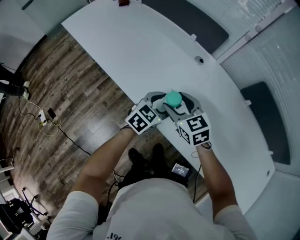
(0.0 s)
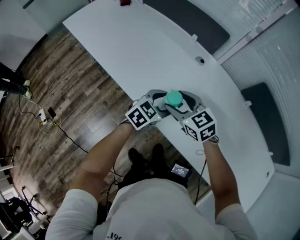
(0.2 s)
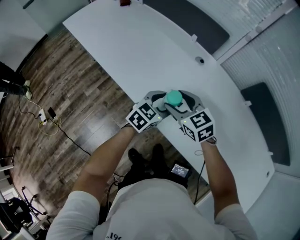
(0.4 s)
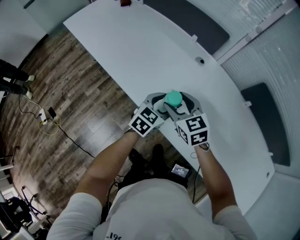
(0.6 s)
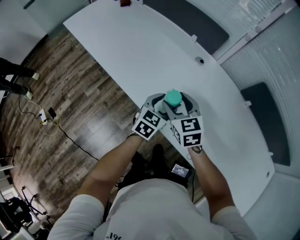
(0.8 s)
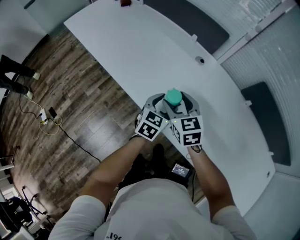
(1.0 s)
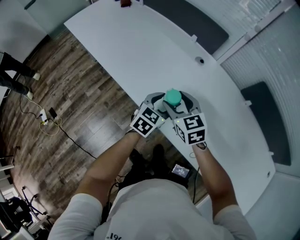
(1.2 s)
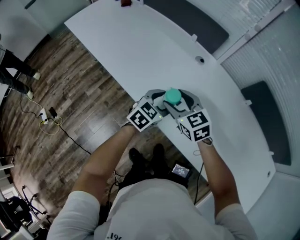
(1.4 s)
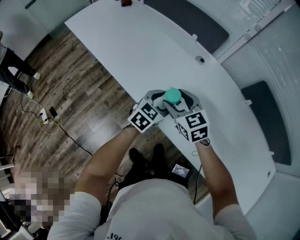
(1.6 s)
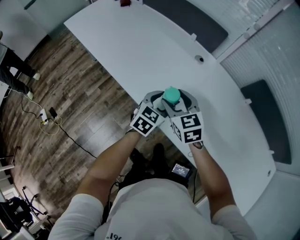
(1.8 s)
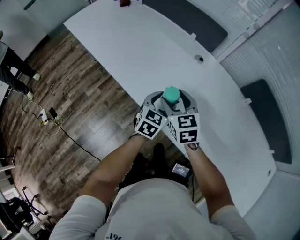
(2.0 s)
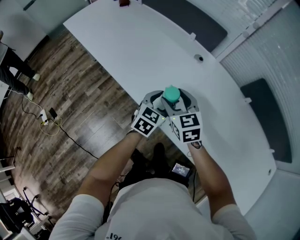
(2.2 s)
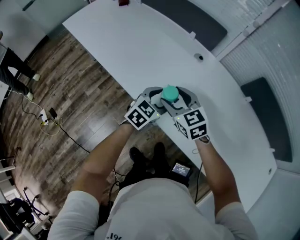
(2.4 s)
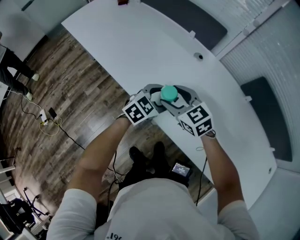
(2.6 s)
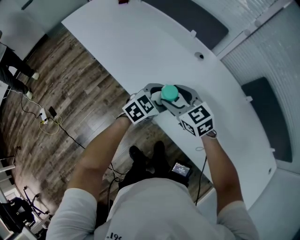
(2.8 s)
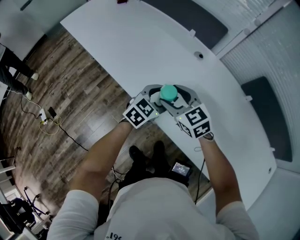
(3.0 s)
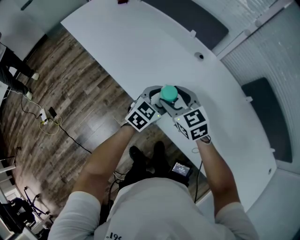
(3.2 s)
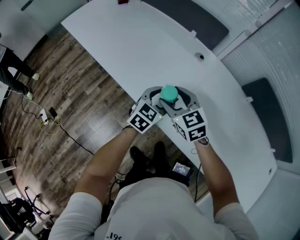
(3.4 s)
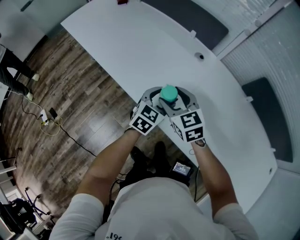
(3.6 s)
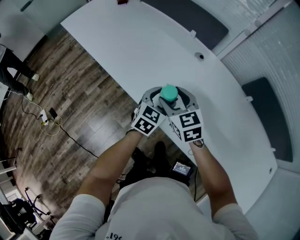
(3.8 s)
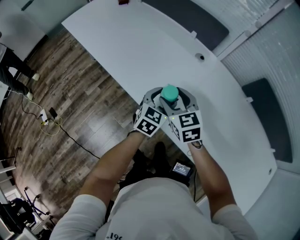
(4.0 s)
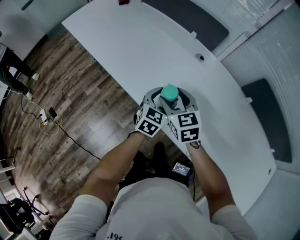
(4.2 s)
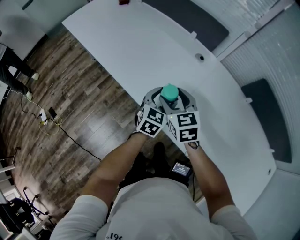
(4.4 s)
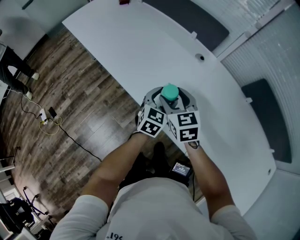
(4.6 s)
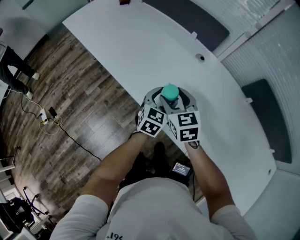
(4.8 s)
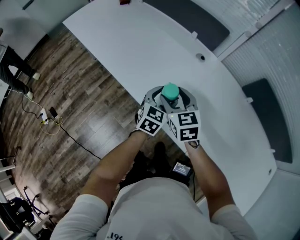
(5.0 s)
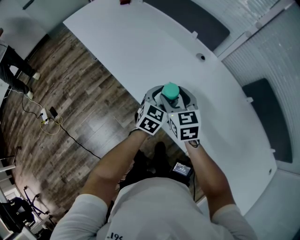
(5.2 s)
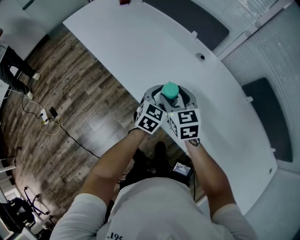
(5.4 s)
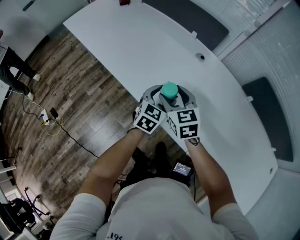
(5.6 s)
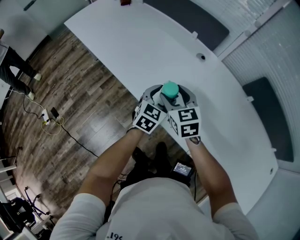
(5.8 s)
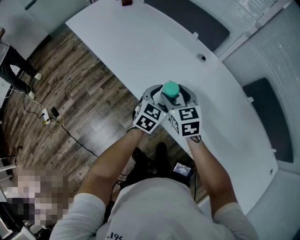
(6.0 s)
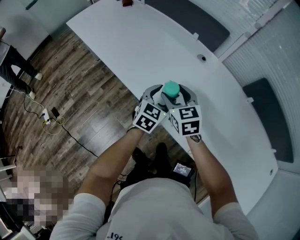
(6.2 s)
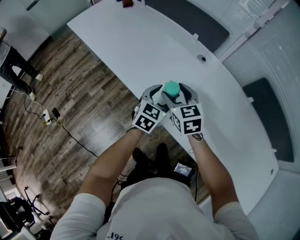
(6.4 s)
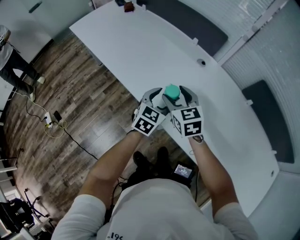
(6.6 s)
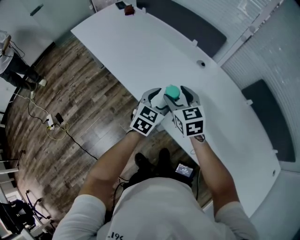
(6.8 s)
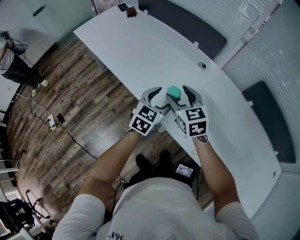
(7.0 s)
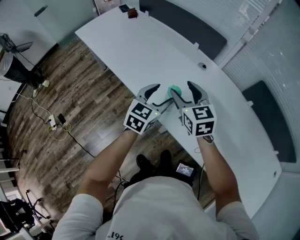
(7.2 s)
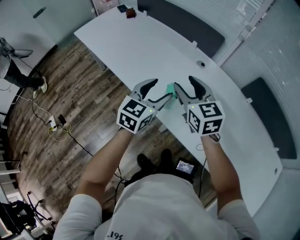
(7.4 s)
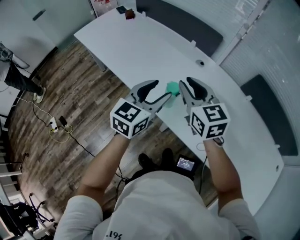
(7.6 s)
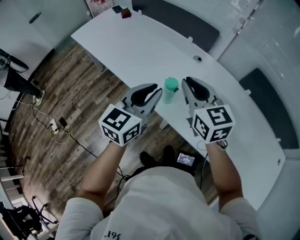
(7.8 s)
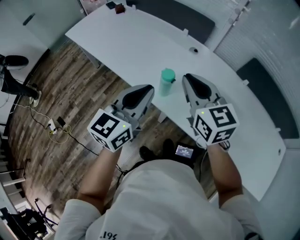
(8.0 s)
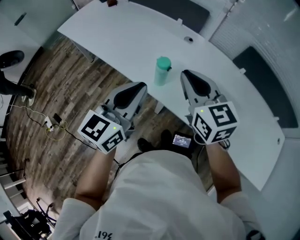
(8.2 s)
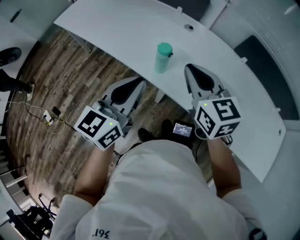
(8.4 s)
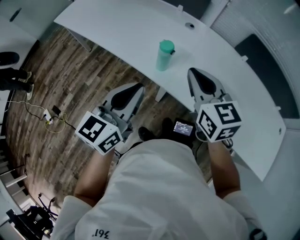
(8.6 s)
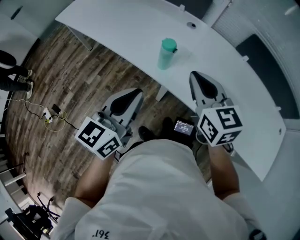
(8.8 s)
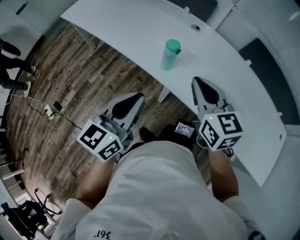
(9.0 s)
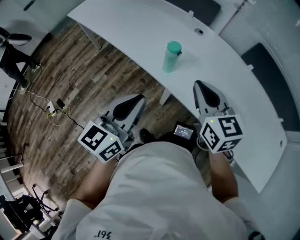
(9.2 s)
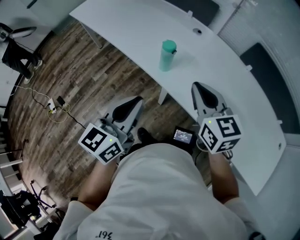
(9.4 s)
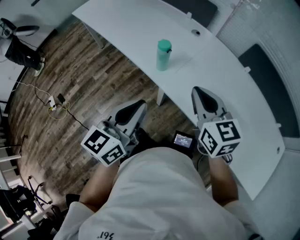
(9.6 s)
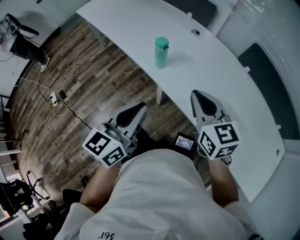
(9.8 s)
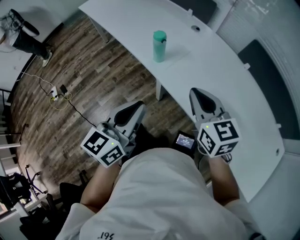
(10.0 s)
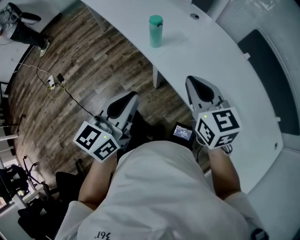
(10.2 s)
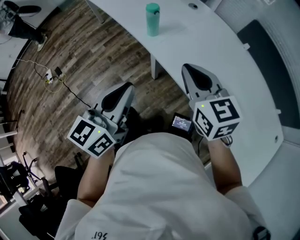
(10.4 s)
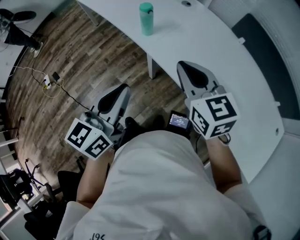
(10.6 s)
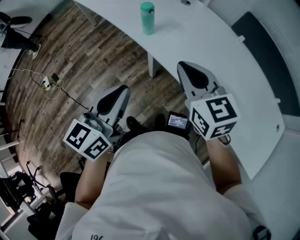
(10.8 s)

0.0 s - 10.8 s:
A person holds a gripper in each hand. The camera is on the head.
0.0 s - 3.0 s: There are only small adjustments of the grippers.
3.0 s - 4.6 s: The left gripper changes its angle by roughly 20 degrees.
4.6 s - 6.2 s: The grippers make only small movements.
6.2 s - 7.8 s: The left gripper heads upward and backward, covering some 20 cm, changes its angle by roughly 20 degrees, and closes, while the right gripper is displaced upward by approximately 15 cm, and closes.
7.8 s - 9.2 s: Both grippers move backward, approximately 15 cm.
9.2 s - 10.8 s: The two grippers go about 15 cm backward and to the right.

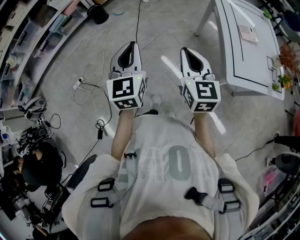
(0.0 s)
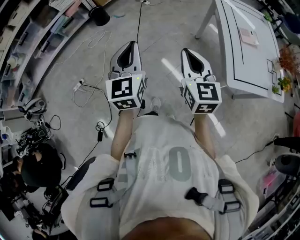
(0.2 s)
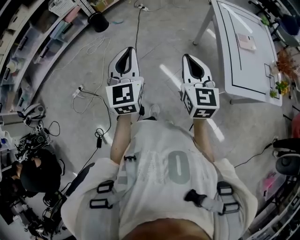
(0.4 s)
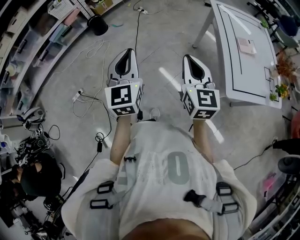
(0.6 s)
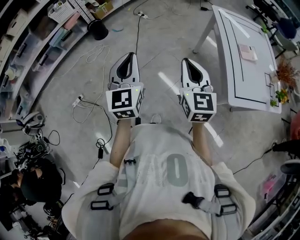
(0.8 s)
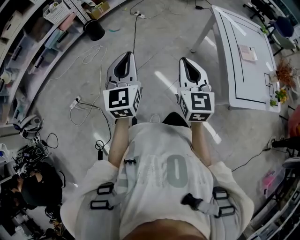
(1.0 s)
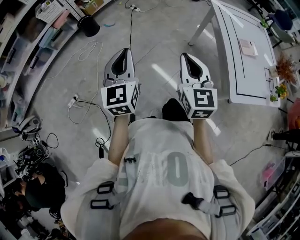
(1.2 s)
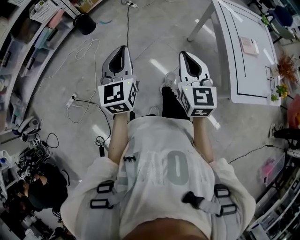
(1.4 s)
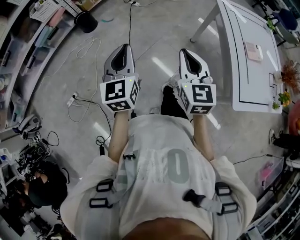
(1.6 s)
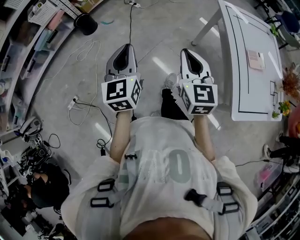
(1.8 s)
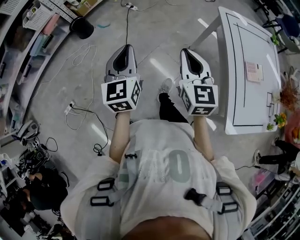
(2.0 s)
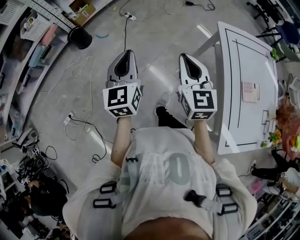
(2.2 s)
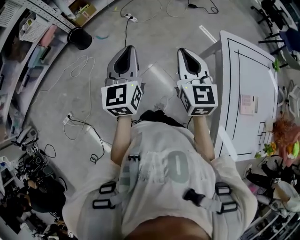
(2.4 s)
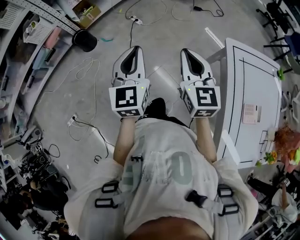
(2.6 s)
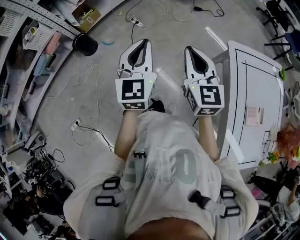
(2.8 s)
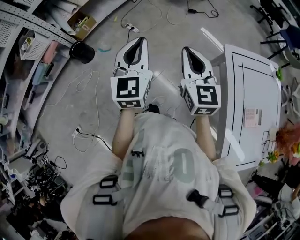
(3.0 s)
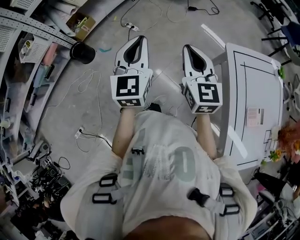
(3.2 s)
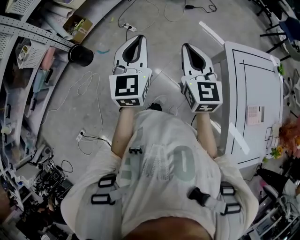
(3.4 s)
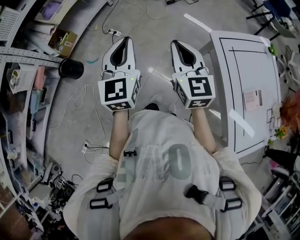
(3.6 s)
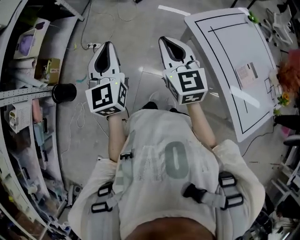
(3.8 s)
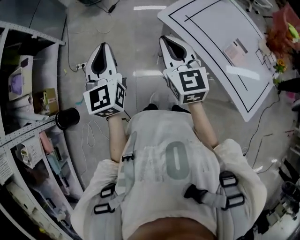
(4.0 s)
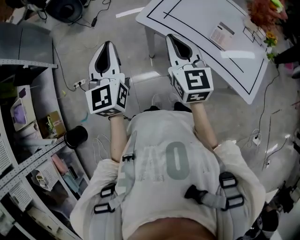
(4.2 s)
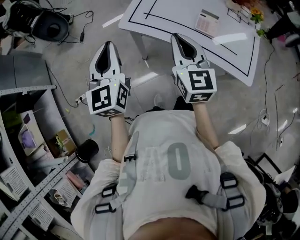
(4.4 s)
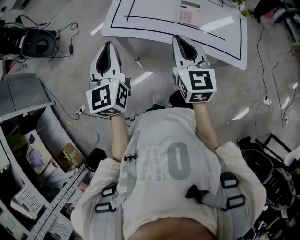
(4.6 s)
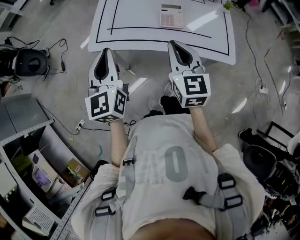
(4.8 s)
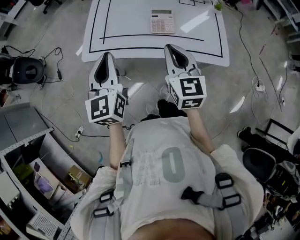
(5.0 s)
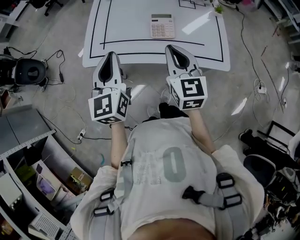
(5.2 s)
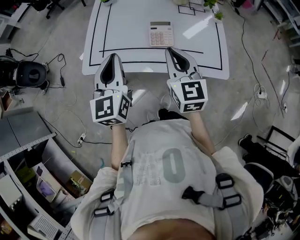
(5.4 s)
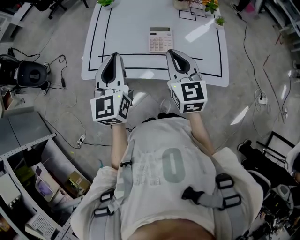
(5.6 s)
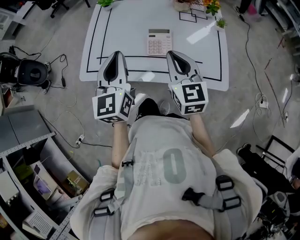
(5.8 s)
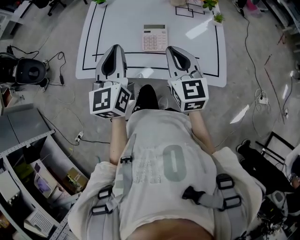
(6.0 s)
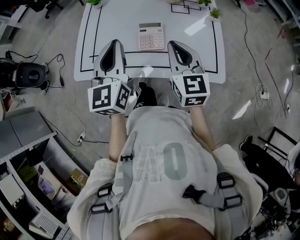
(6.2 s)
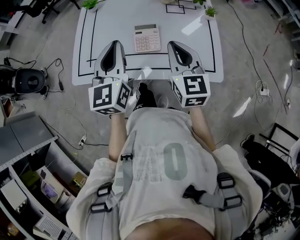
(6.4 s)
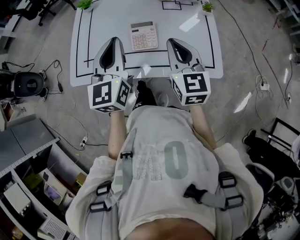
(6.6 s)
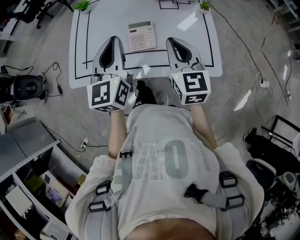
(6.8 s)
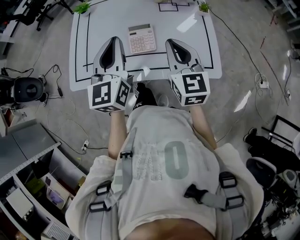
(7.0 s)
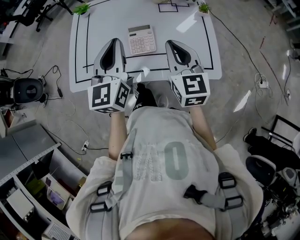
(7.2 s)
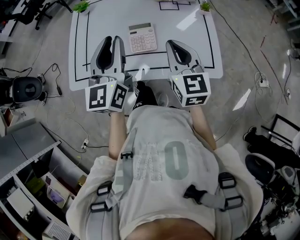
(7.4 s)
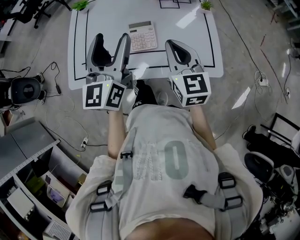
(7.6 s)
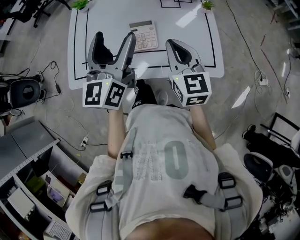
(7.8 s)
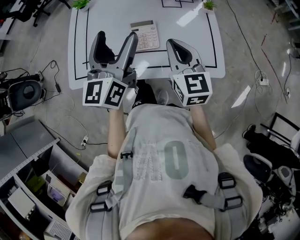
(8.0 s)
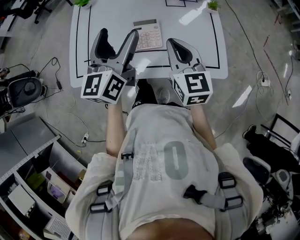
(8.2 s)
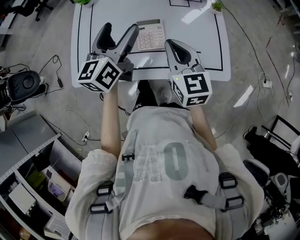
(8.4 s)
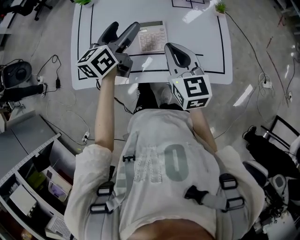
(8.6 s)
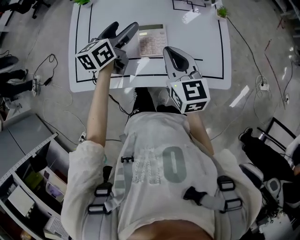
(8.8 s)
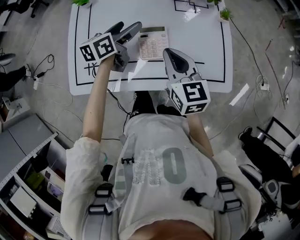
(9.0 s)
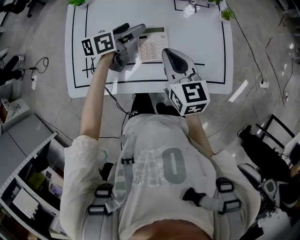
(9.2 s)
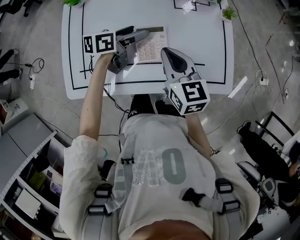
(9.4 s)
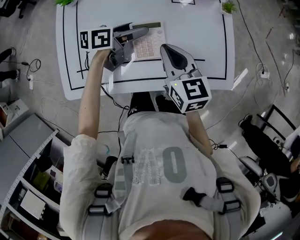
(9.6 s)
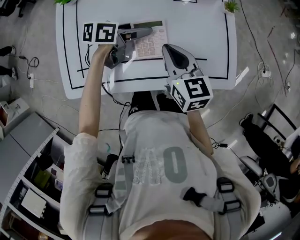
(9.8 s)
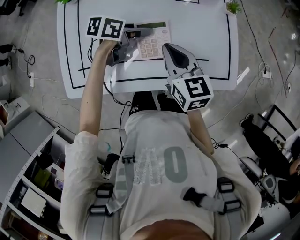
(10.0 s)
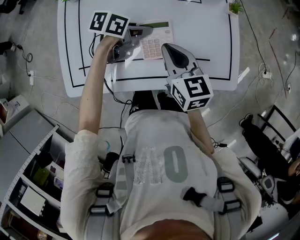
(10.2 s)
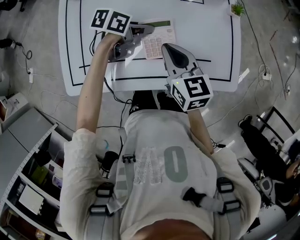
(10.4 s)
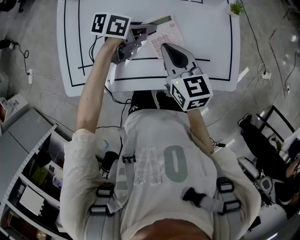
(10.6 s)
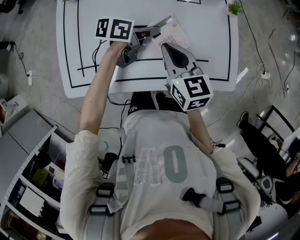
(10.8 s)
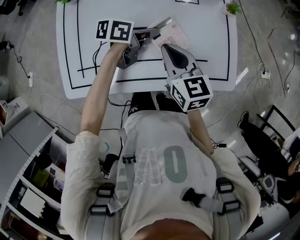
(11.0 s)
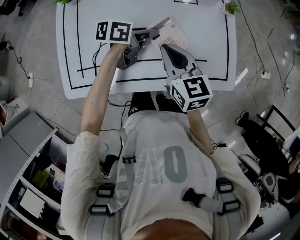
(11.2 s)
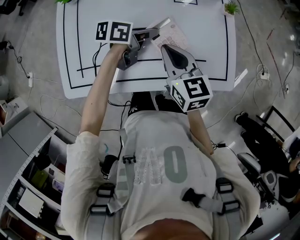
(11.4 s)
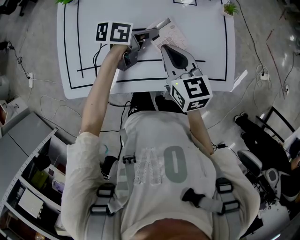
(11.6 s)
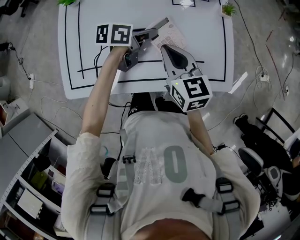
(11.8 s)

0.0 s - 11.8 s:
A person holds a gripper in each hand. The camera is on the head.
0.0 s - 1.4 s: The left gripper moves forward and to the left, some 15 cm, while the right gripper goes about 15 cm forward.
1.4 s - 3.0 s: The two grippers travel together, forward, roughly 50 cm.
3.0 s - 4.4 s: The left gripper shifts by about 30 cm, and swivels about 50 degrees. Meanwhile the right gripper ends up roughly 25 cm from where it was, and rotates approximately 60 degrees.
4.4 s - 6.0 s: Both grippers travel together to the right and forward, roughly 25 cm. The left gripper changes its angle by approximately 30 degrees.
6.0 s - 7.4 s: The left gripper changes place by approximately 5 cm. Meanwhile the right gripper changes place by roughly 5 cm.
7.4 s - 8.8 s: The left gripper travels forward and downward by approximately 20 cm, rotates about 40 degrees, and opens up, while the right gripper travels to the left by about 5 cm.
8.8 s - 10.4 s: The right gripper moves downward, approximately 5 cm, while the left gripper moves downward and to the right, about 15 cm, changes its angle by some 50 degrees, and closes up.
10.4 s - 11.8 s: The grippers make only small movements.

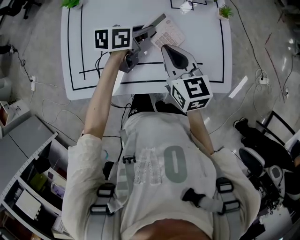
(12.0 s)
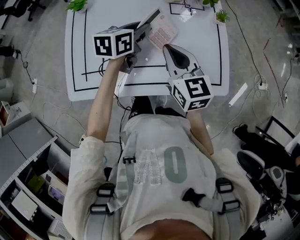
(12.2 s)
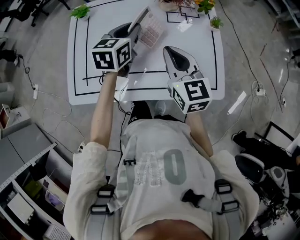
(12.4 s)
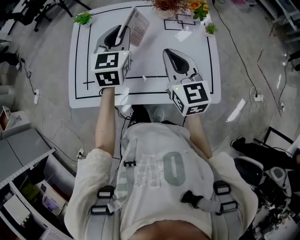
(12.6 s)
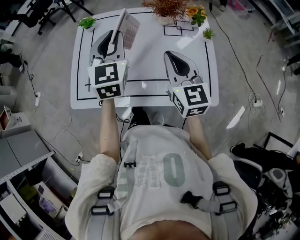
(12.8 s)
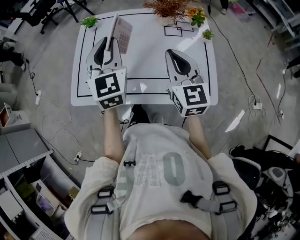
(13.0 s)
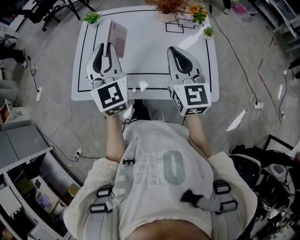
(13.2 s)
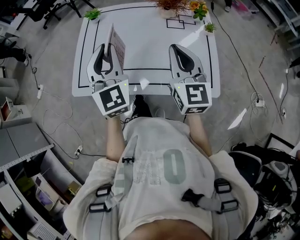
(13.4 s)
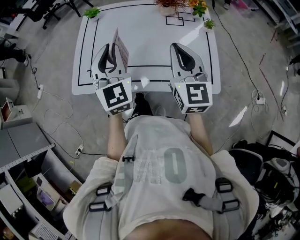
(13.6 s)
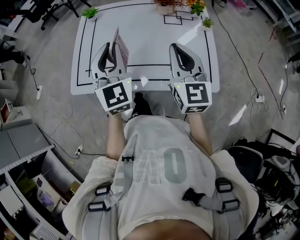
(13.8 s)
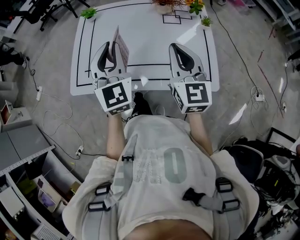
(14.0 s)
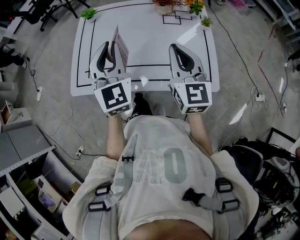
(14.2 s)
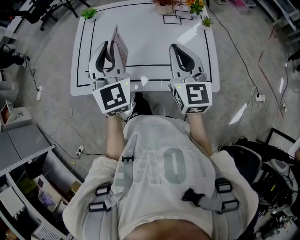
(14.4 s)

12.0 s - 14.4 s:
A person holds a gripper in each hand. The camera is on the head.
12.0 s - 13.2 s: The left gripper travels upward by roughly 20 cm, and changes its angle by about 80 degrees. The right gripper goes some 15 cm upward, and turns by about 20 degrees.
13.2 s - 14.4 s: There are only small adjustments of the grippers.
